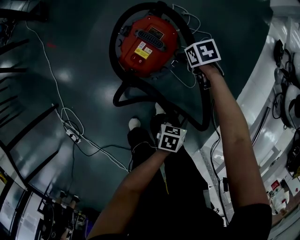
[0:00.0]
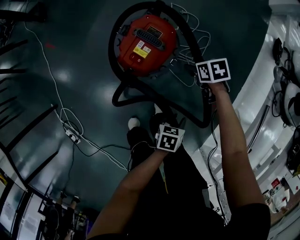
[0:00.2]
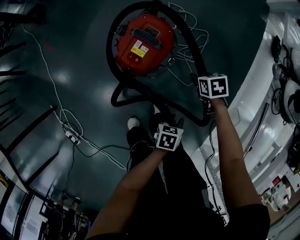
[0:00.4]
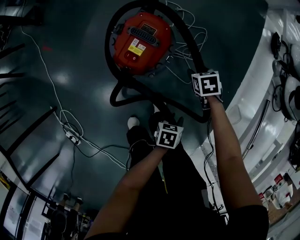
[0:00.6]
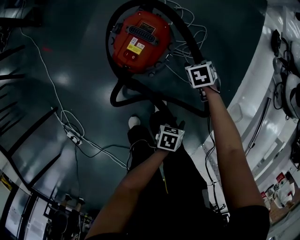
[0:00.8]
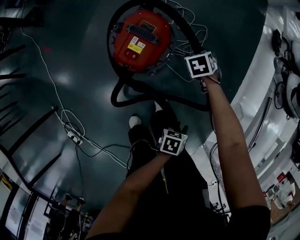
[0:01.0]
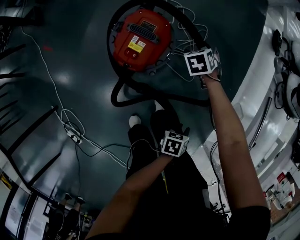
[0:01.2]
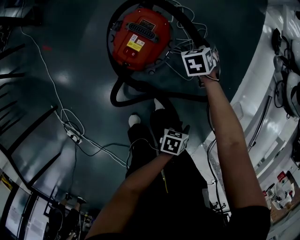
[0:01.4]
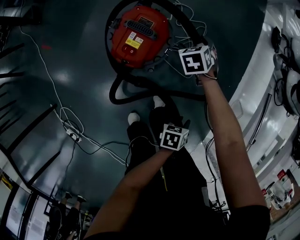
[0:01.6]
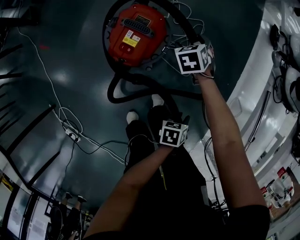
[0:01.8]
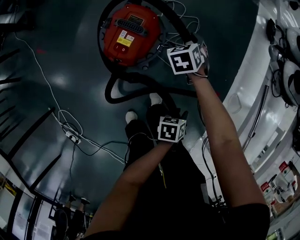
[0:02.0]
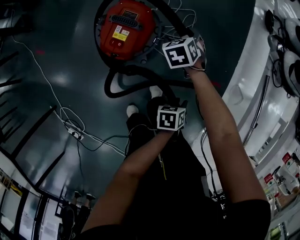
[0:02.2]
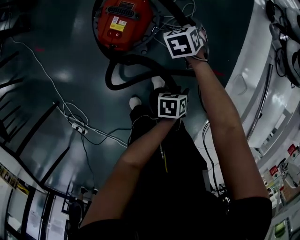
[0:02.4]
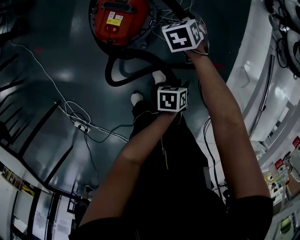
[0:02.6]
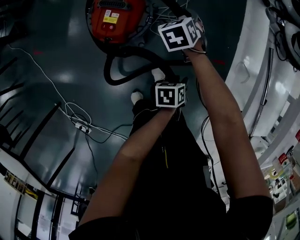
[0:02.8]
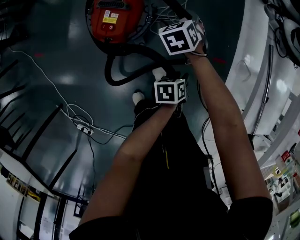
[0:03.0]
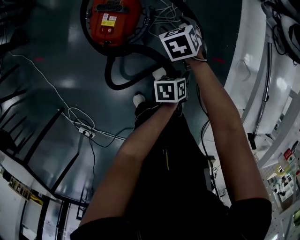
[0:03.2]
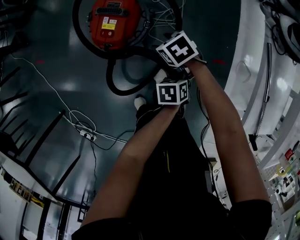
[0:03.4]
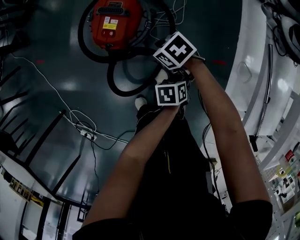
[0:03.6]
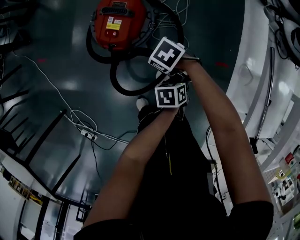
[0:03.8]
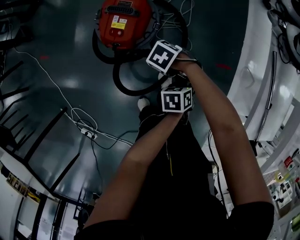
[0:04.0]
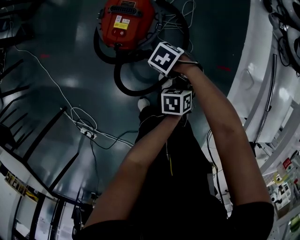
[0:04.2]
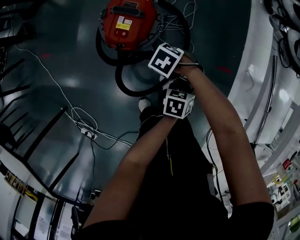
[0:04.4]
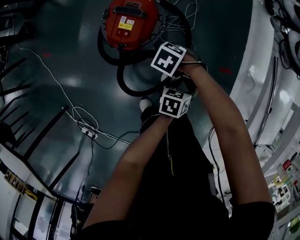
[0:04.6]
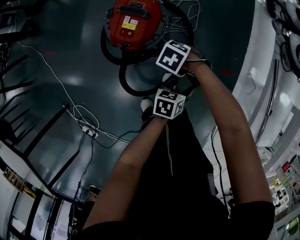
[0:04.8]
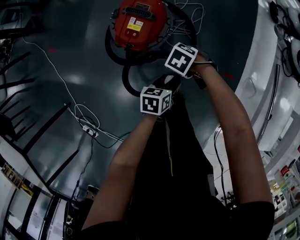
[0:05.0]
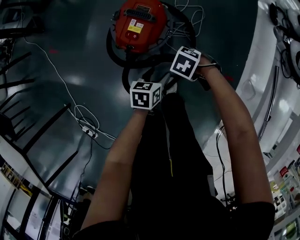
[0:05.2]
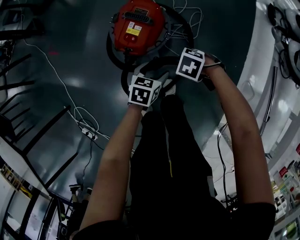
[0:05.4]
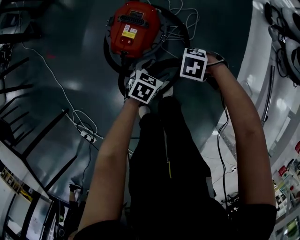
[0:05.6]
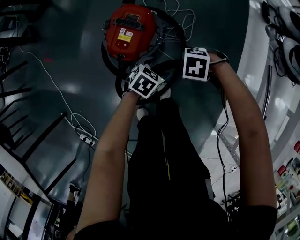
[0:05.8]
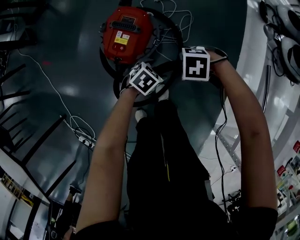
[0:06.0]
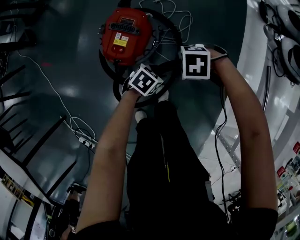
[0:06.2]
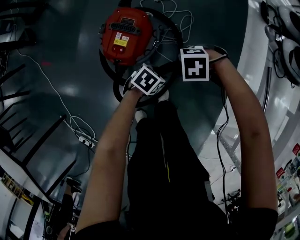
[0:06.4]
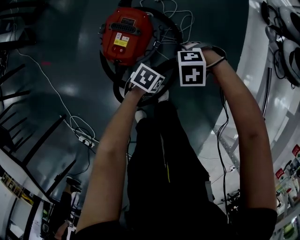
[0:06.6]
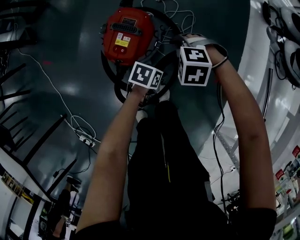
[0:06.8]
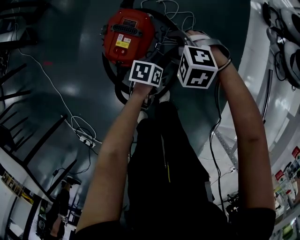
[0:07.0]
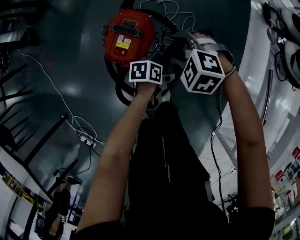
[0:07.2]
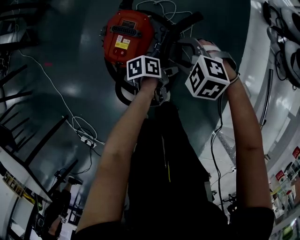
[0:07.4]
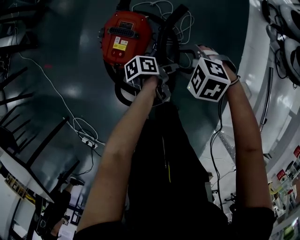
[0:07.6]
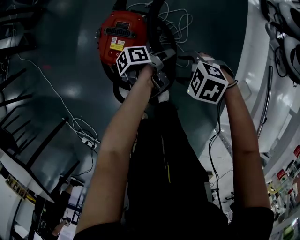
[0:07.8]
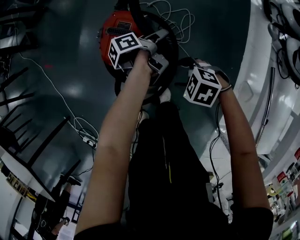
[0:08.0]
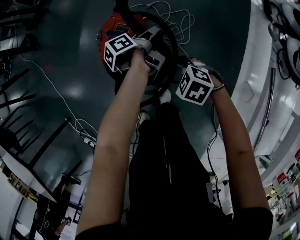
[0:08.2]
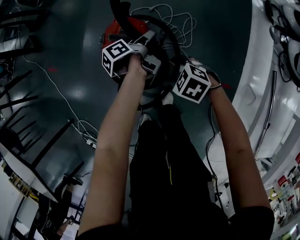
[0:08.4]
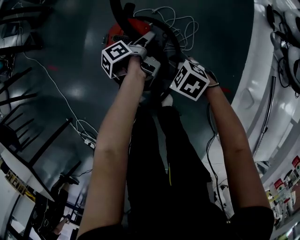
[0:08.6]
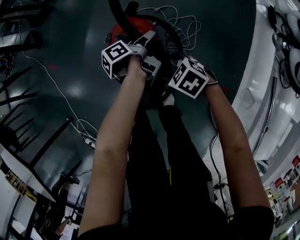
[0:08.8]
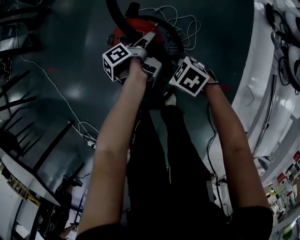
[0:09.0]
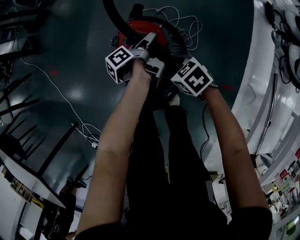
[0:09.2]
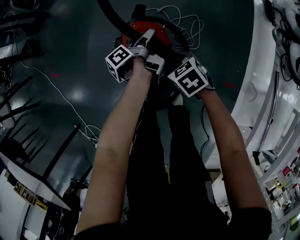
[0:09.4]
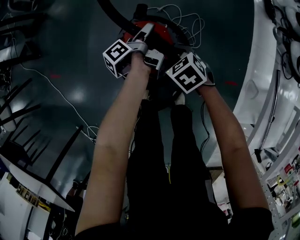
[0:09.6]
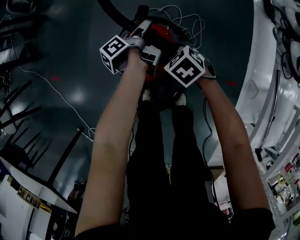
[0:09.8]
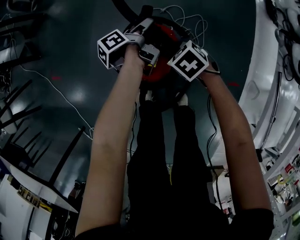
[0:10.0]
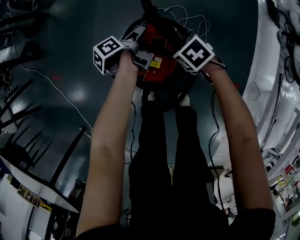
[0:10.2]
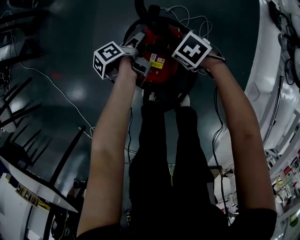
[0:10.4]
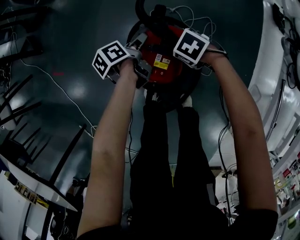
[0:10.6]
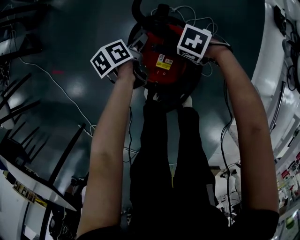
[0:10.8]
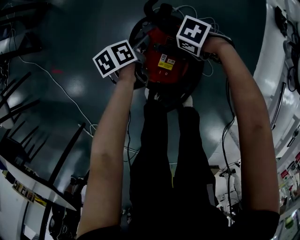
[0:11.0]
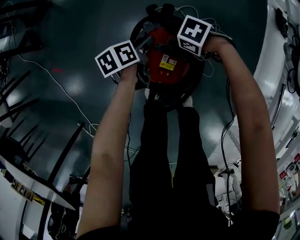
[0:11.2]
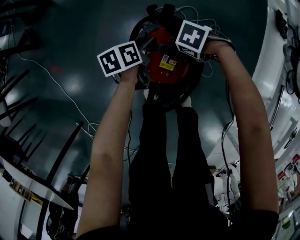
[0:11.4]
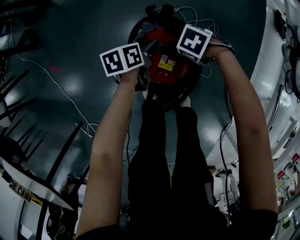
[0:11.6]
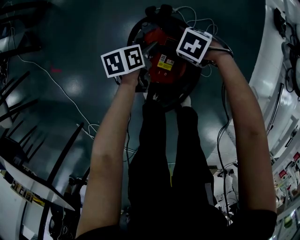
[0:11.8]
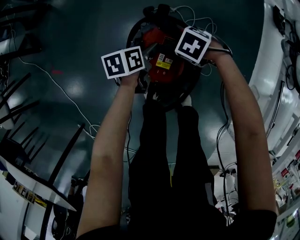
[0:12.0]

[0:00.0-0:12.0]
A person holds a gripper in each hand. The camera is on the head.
0:00.0 to 0:01.6: The right gripper swivels roughly 30 degrees, while the left gripper ends up some 10 cm from where it was.
0:01.6 to 0:03.0: The right gripper shifts roughly 10 cm to the right and backward.
0:03.0 to 0:04.4: The right gripper ends up approximately 20 cm from where it was, and swivels about 50 degrees.
0:04.4 to 0:06.0: The right gripper changes place by about 10 cm, and swivels roughly 30 degrees. Meanwhile the left gripper shifts by about 15 cm, and changes its angle by some 40 degrees.
0:06.0 to 0:07.6: The right gripper rotates some 30 degrees. The left gripper moves approximately 5 cm, and rolls counterclockwise, seen from behind, by approximately 80 degrees.
0:07.6 to 0:09.0: The right gripper ends up approximately 10 cm from where it was, and rotates about 30 degrees. The left gripper ends up some 25 cm from where it was, and rotates roughly 40 degrees.
0:09.0 to 0:10.4: The right gripper changes place by approximately 15 cm; the left gripper moves about 15 cm.
0:10.4 to 0:12.0: The left gripper rotates around the line of its fingers by approximately 40 degrees, clockwise from behind.

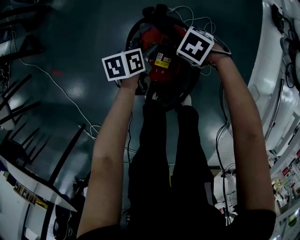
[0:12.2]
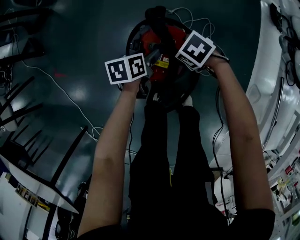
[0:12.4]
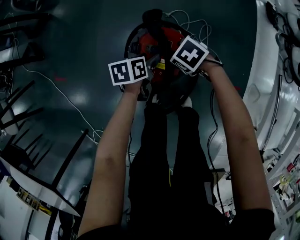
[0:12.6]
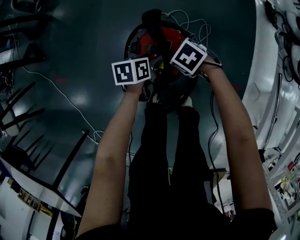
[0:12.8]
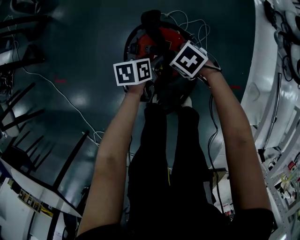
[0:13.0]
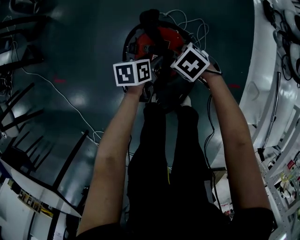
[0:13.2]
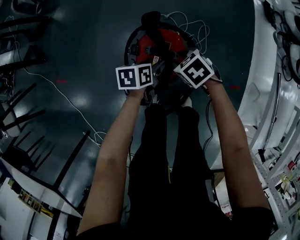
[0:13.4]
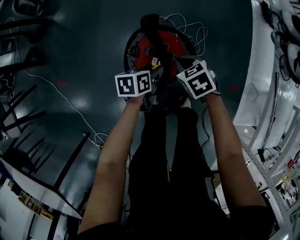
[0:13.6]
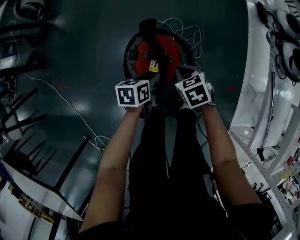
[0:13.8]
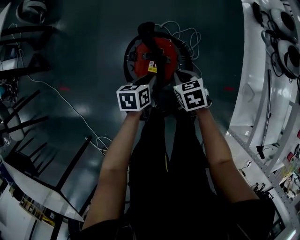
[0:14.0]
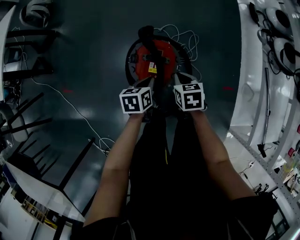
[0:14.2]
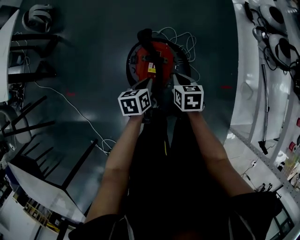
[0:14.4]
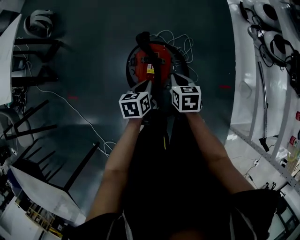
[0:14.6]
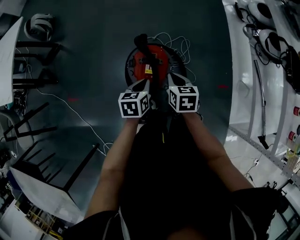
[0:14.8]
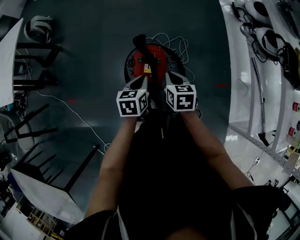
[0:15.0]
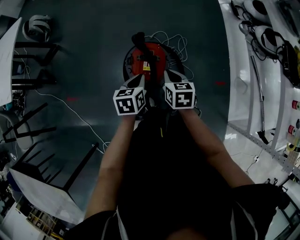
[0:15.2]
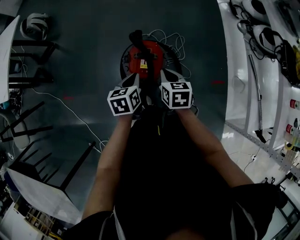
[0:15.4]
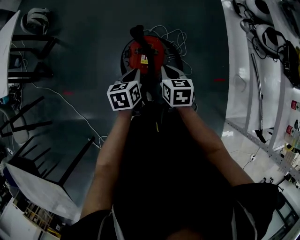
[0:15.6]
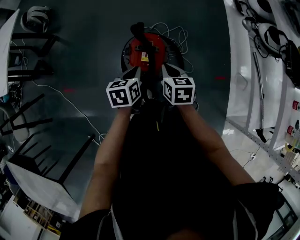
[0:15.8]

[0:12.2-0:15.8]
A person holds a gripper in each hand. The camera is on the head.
0:12.2 to 0:14.0: The right gripper heads upward, covering approximately 10 cm, rotates about 50 degrees, and closes its fingers. The left gripper shifts by approximately 15 cm, and closes.
0:14.0 to 0:15.8: The right gripper heads upward and backward, covering approximately 15 cm, and rotates about 30 degrees. The left gripper shifts roughly 15 cm upward.

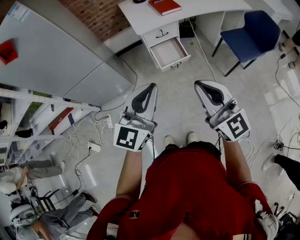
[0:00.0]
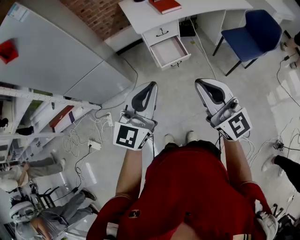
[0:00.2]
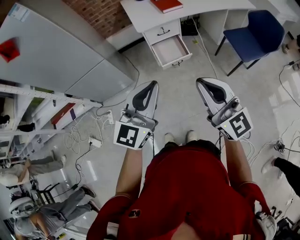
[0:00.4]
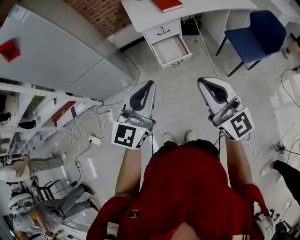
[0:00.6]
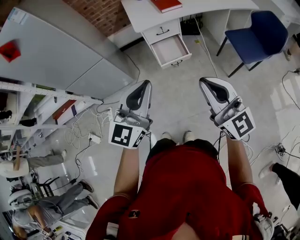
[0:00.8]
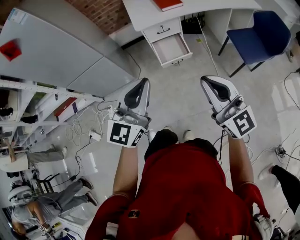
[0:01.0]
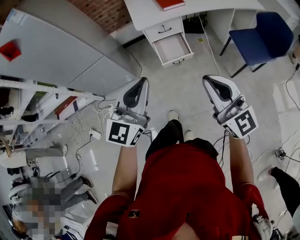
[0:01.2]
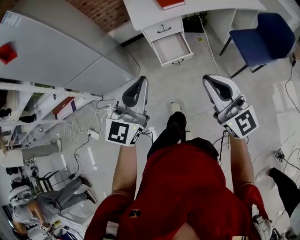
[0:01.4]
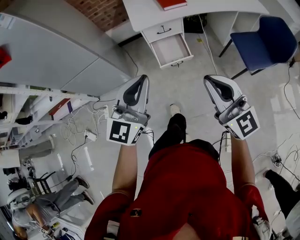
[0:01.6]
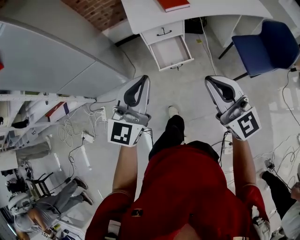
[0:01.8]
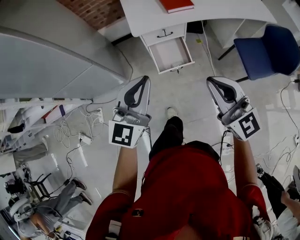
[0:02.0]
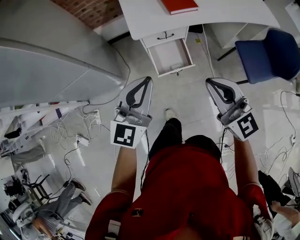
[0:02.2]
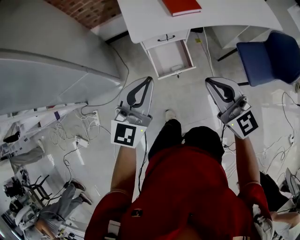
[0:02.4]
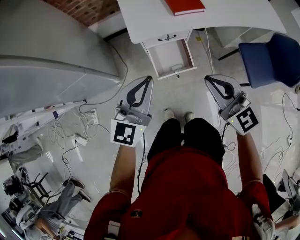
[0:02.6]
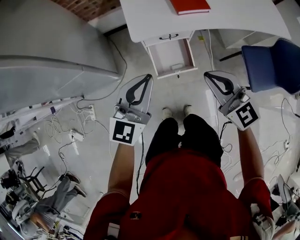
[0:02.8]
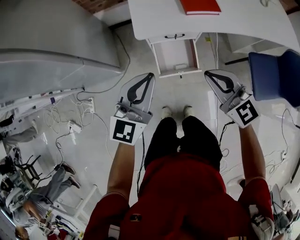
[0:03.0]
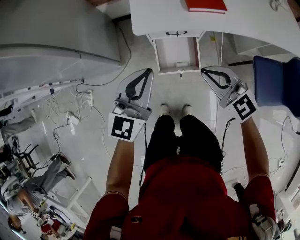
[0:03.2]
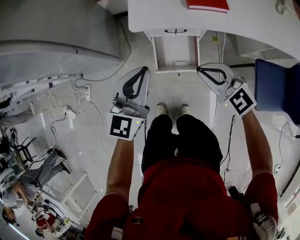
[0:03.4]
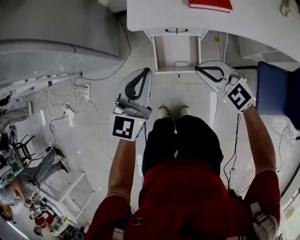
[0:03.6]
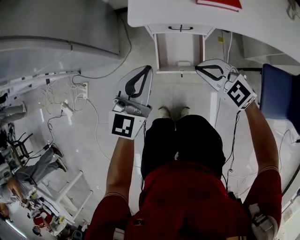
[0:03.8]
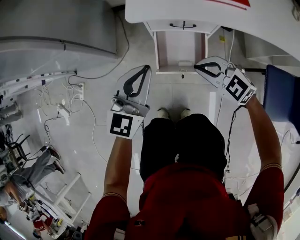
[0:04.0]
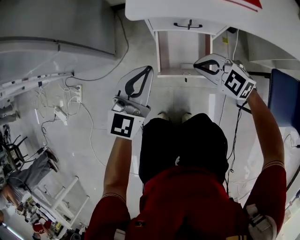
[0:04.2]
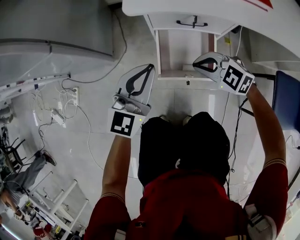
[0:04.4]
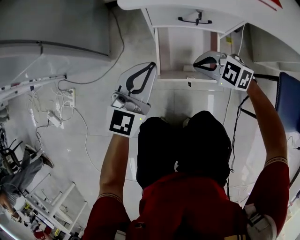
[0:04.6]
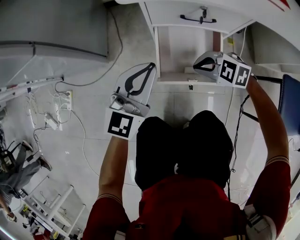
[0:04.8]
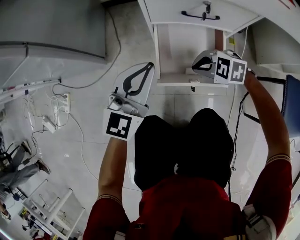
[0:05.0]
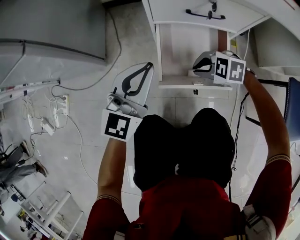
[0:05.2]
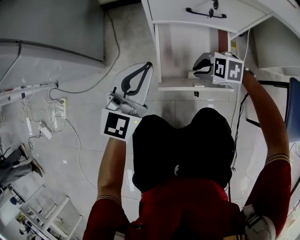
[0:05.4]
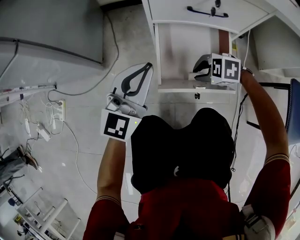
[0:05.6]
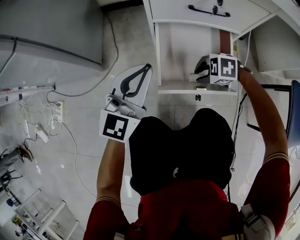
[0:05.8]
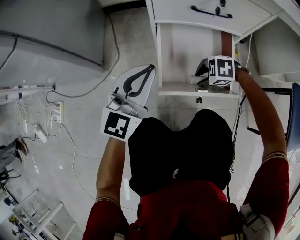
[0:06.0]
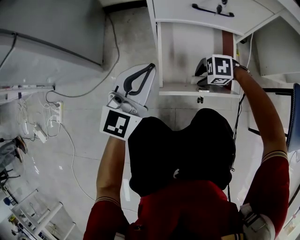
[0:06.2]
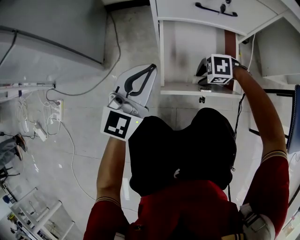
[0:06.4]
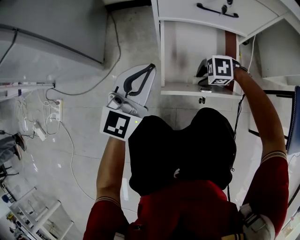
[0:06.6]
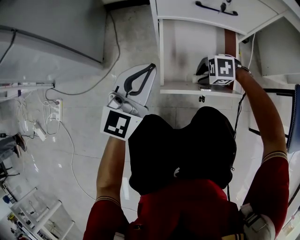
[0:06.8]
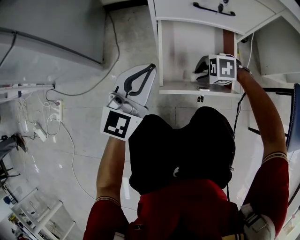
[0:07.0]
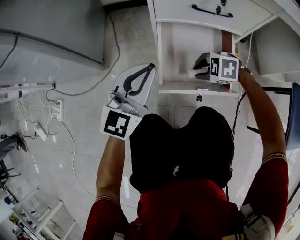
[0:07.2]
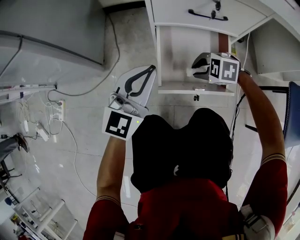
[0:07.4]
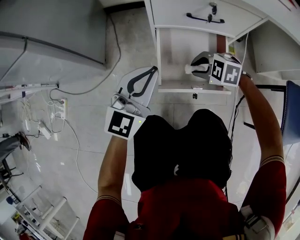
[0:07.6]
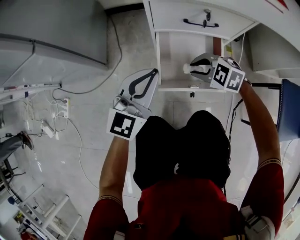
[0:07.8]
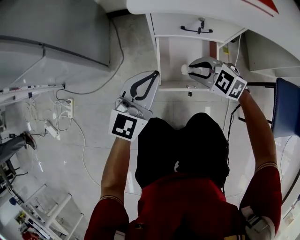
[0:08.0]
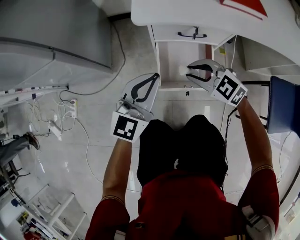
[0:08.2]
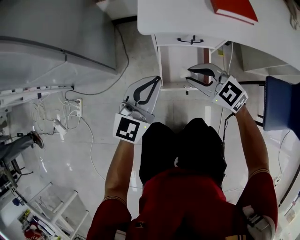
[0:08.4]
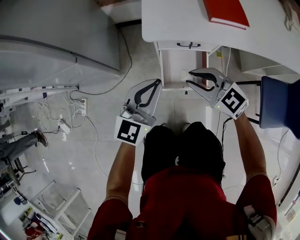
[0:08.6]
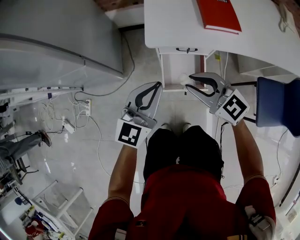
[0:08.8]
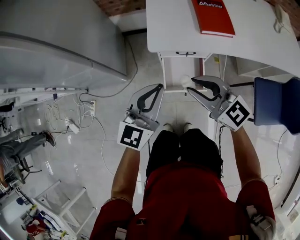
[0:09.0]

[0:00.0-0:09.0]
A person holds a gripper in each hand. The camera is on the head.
0:00.0 to 0:01.6: The right gripper moves to the right and forward, roughly 15 cm, while the left gripper is displaced forward and to the right by about 10 cm.
0:01.6 to 0:03.0: Both grippers travel together forward and downward, some 35 cm. The right gripper swivels about 20 degrees.
0:03.0 to 0:04.4: Both grippers travel together downward, roughly 30 cm. The right gripper changes its angle by some 50 degrees.
0:04.4 to 0:06.0: The right gripper moves downward, some 30 cm, swivels roughly 40 degrees, and opens, while the left gripper shifts approximately 15 cm downward.
0:06.0 to 0:07.6: The right gripper travels upward by roughly 10 cm.
0:07.6 to 0:09.0: The grippers both shift upward by some 50 cm. The right gripper points its fingers some 50 degrees further upward.
